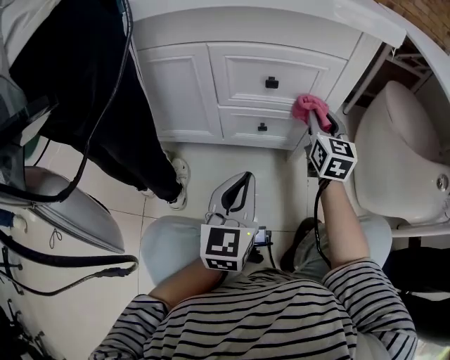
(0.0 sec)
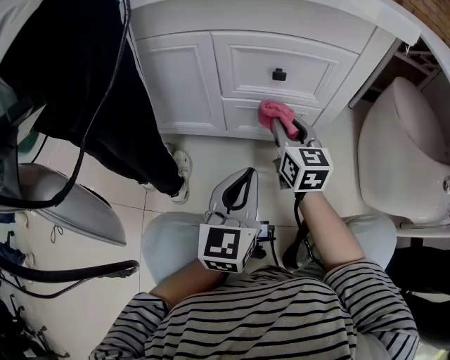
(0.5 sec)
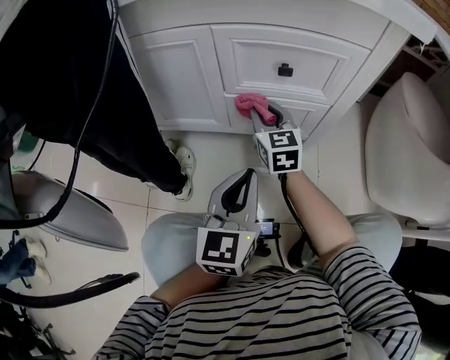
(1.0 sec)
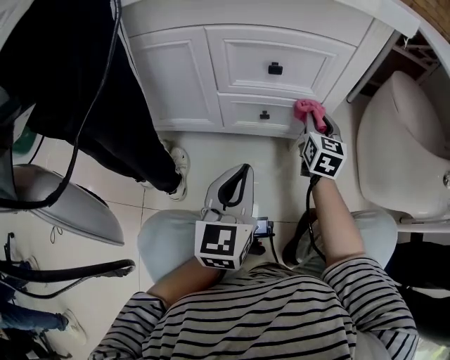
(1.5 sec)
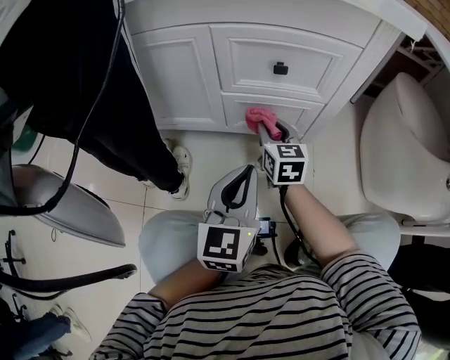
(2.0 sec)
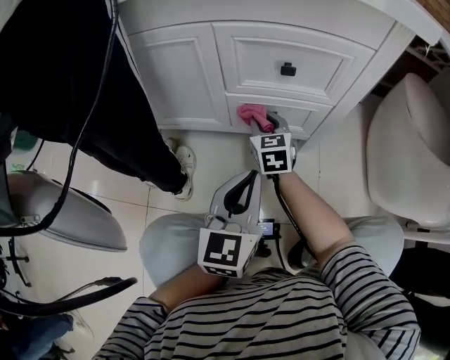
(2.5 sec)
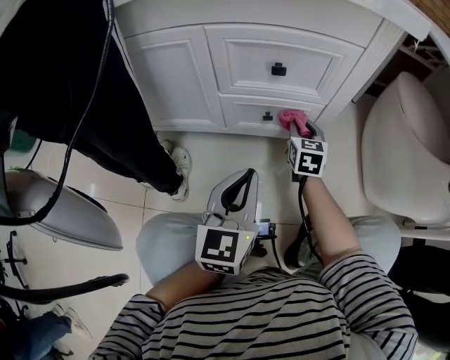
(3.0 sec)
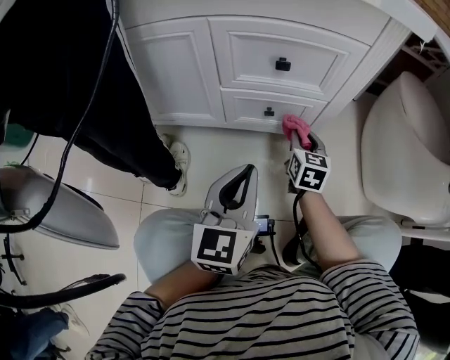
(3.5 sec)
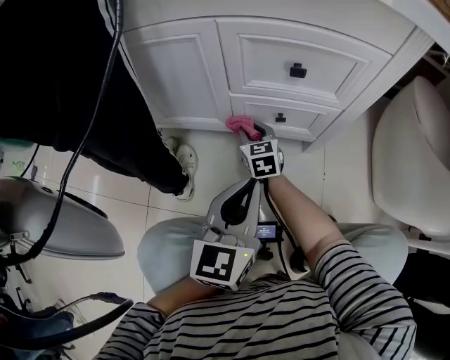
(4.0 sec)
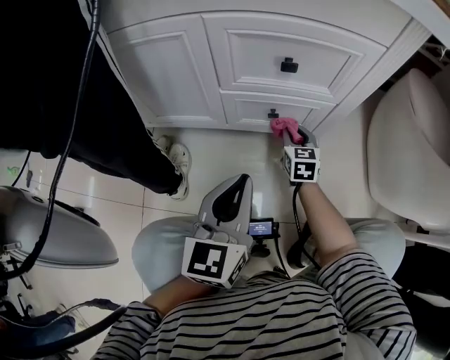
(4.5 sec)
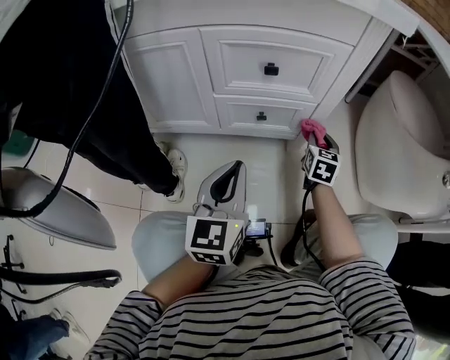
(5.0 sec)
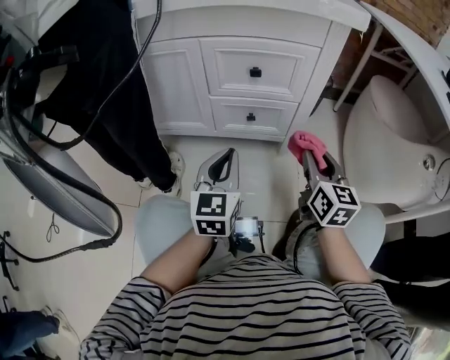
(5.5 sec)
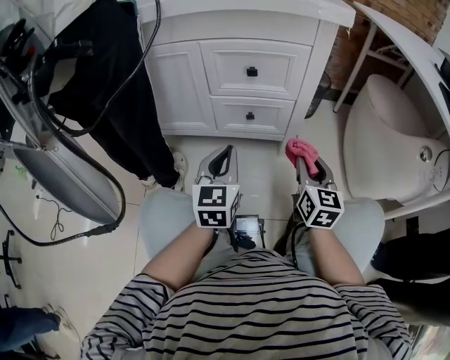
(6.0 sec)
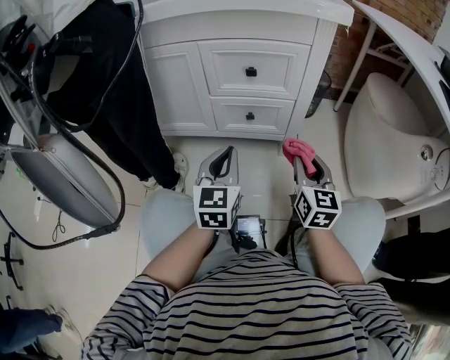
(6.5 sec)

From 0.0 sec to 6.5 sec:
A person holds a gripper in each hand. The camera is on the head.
From 0.0 sec to 2.0 sec: The right gripper swings left and right, about 20 cm each way, with 2 reversals.
From 2.0 sec to 4.5 sec: The right gripper moves left and right over approximately 20 cm, changing direction 3 times.
From 4.5 sec to 6.5 sec: The right gripper travels upward, backward and to the right by roughly 30 cm, and swivels some 20 degrees.
